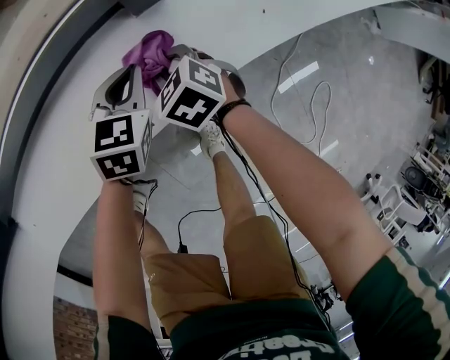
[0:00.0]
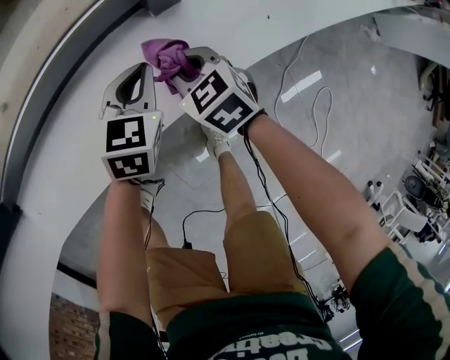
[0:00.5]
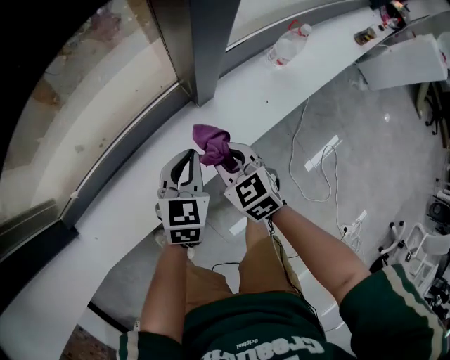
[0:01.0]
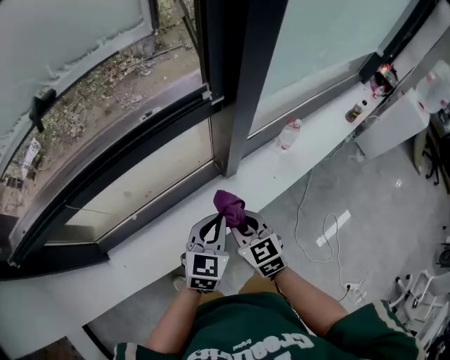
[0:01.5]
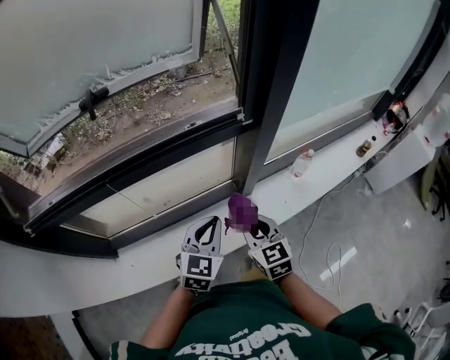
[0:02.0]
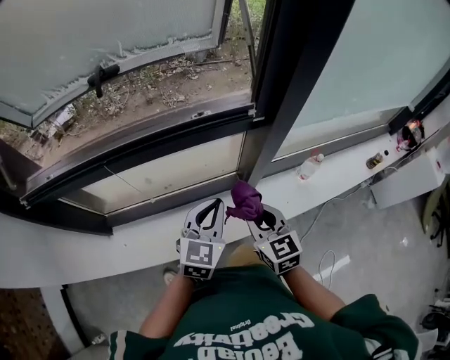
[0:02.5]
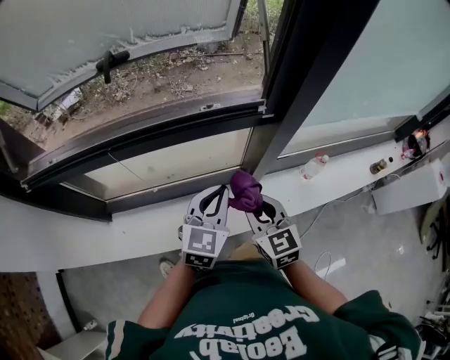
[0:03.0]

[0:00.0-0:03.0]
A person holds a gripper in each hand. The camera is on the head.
0:00.0 to 0:01.5: The two grippers go approximately 40 cm upward. The right gripper swivels roughly 40 degrees; the left gripper turns by some 20 degrees.
0:01.5 to 0:03.0: The left gripper travels upward and forward by roughly 10 cm; the right gripper is displaced upward by approximately 10 cm.

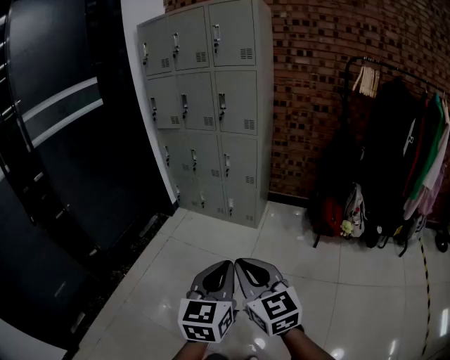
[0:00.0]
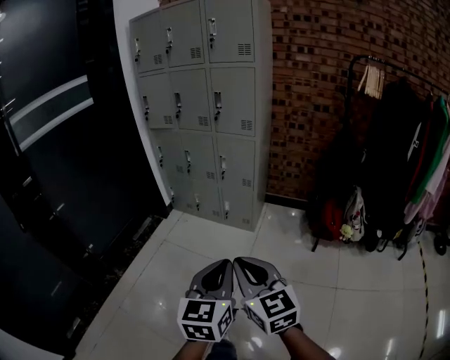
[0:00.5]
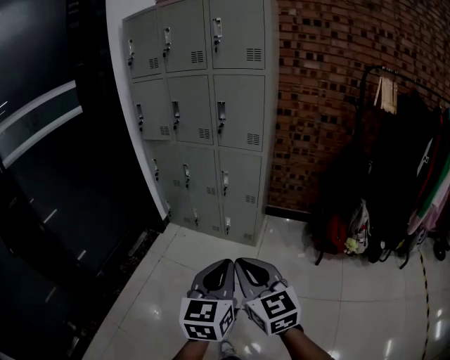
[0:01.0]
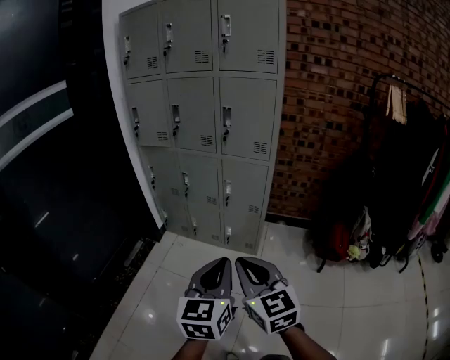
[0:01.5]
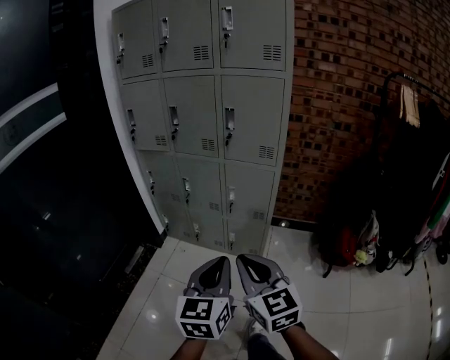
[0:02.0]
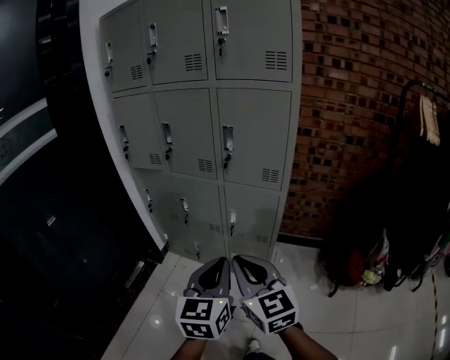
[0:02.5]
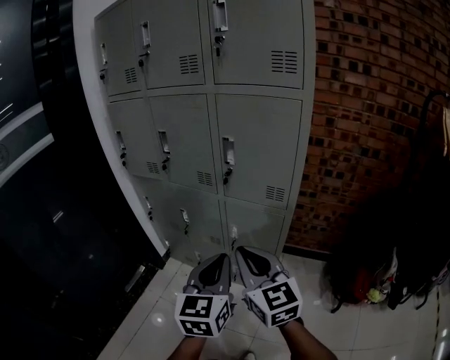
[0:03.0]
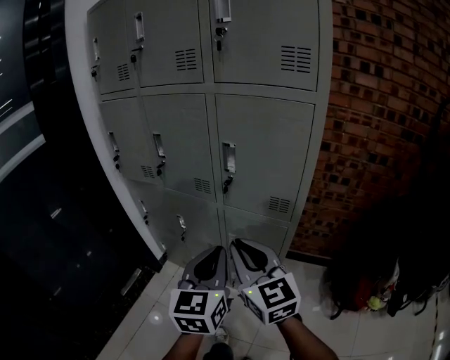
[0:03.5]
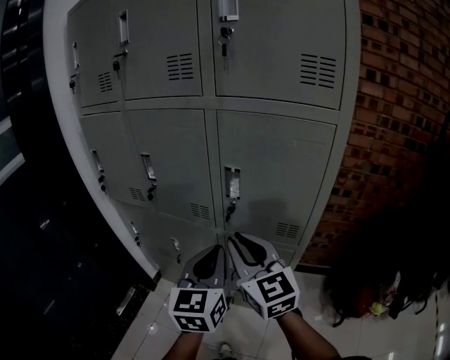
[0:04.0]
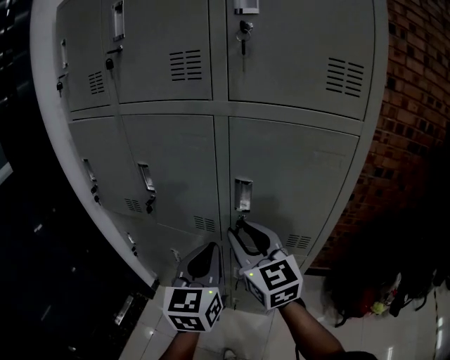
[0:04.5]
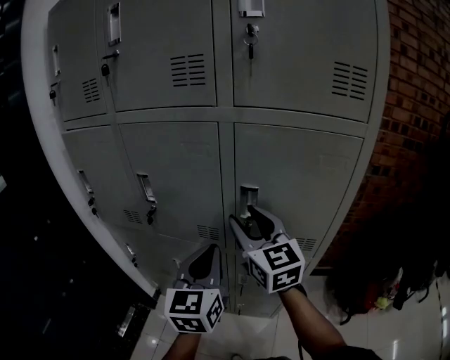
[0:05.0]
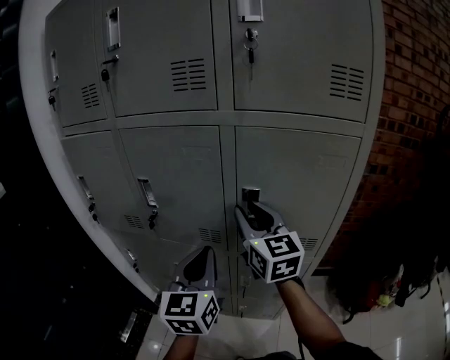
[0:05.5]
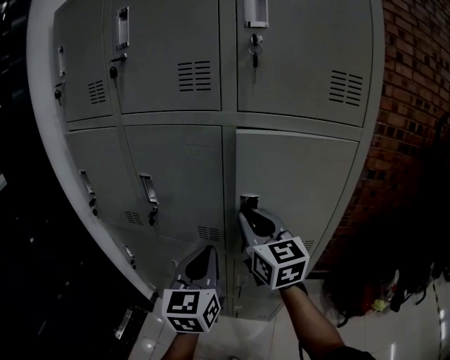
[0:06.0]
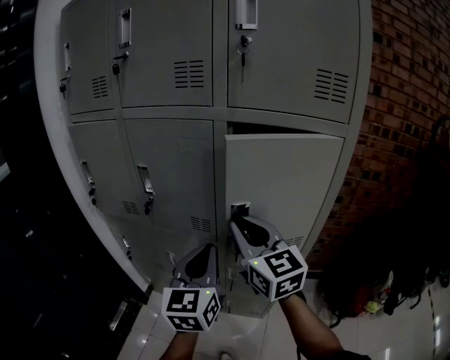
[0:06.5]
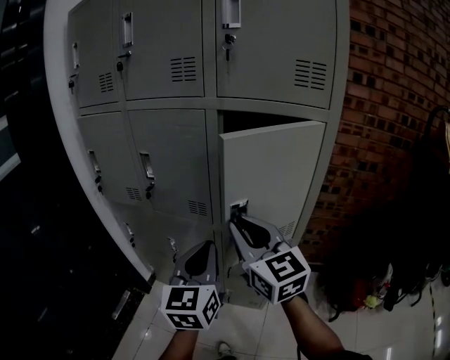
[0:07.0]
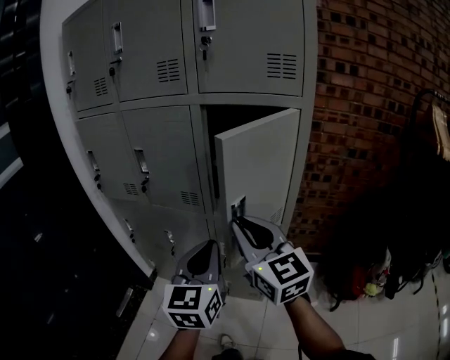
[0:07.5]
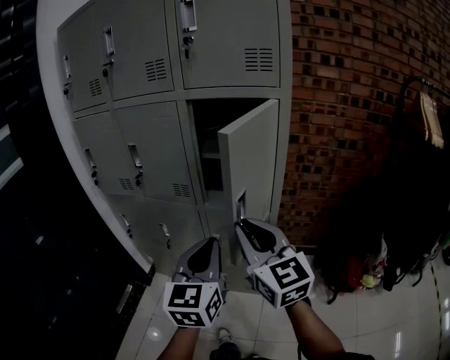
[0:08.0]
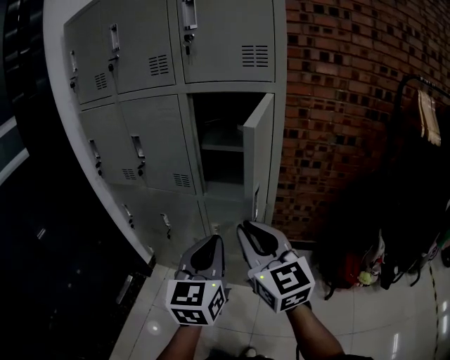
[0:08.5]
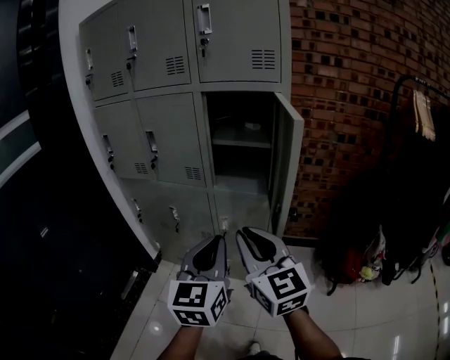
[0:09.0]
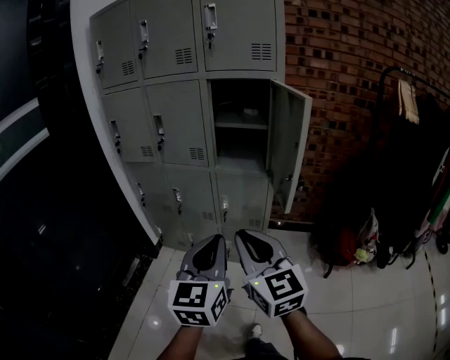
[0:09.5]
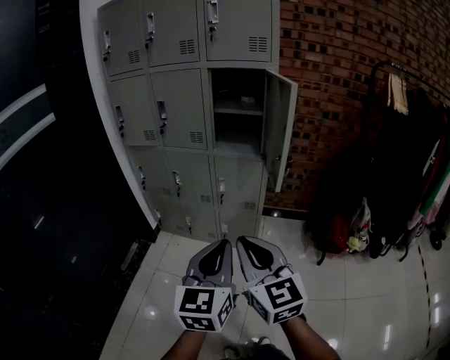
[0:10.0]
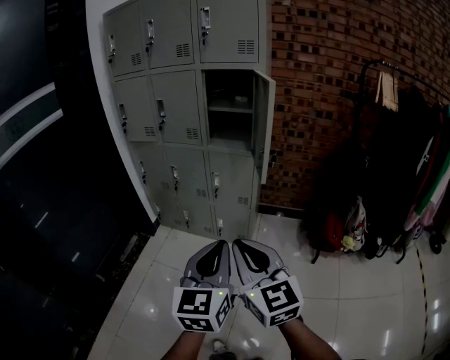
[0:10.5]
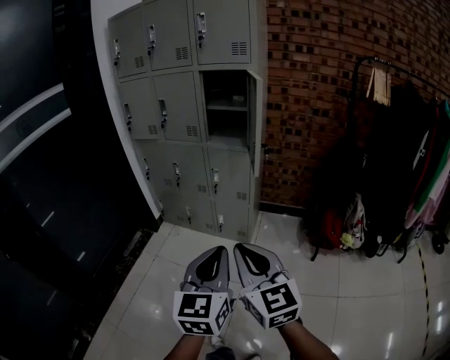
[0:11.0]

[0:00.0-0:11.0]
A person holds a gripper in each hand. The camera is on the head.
0:00.0 to 0:02.0: Both grippers are carried forward, some 40 cm.
0:02.0 to 0:03.5: The grippers both shift forward by about 30 cm.
0:03.5 to 0:05.5: The right gripper goes some 25 cm forward, and opens its fingers; the left gripper goes some 20 cm forward and to the left.
0:05.5 to 0:07.5: The left gripper moves backward and to the right, about 20 cm; the right gripper goes about 20 cm backward.
0:07.5 to 0:09.0: Both grippers move backward, about 15 cm.
0:09.0 to 0:11.0: Both grippers move backward, approximately 35 cm.

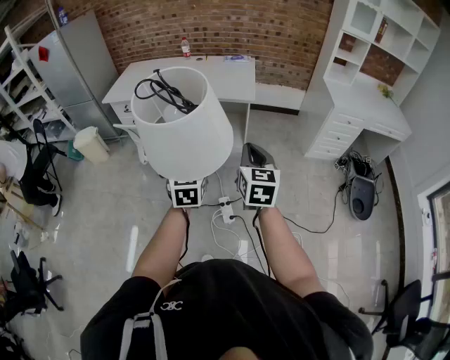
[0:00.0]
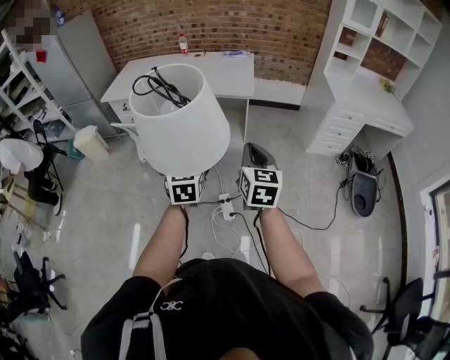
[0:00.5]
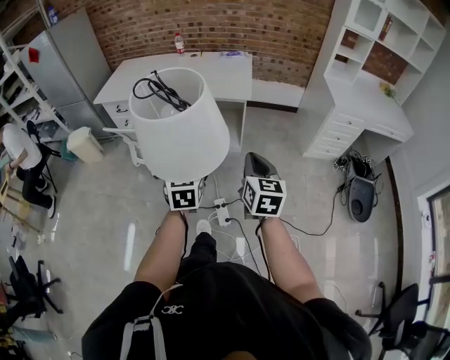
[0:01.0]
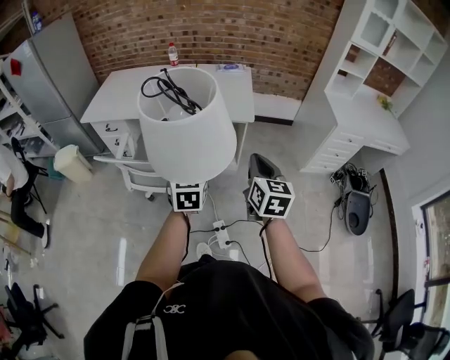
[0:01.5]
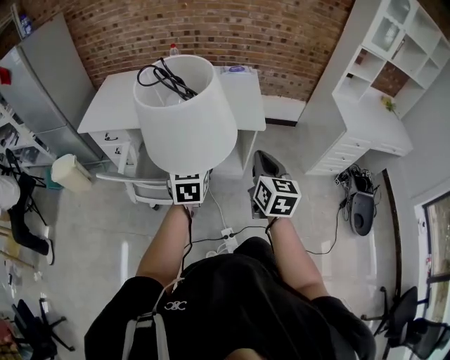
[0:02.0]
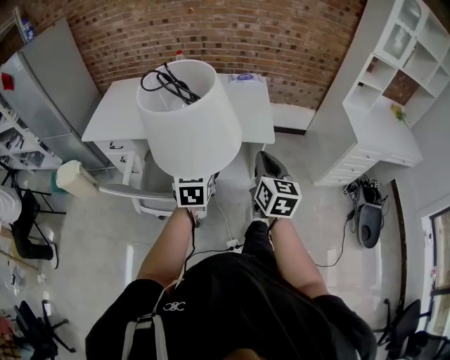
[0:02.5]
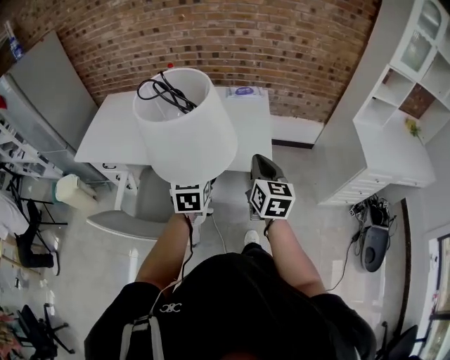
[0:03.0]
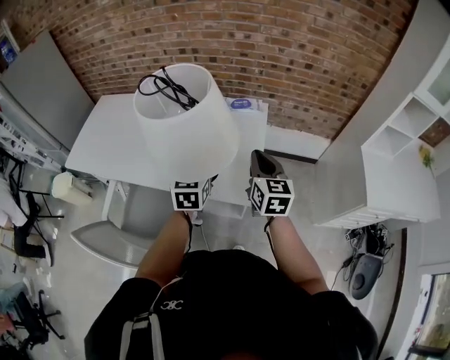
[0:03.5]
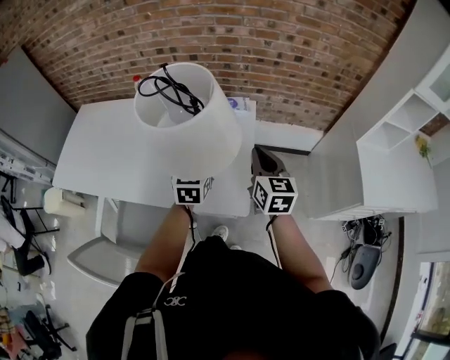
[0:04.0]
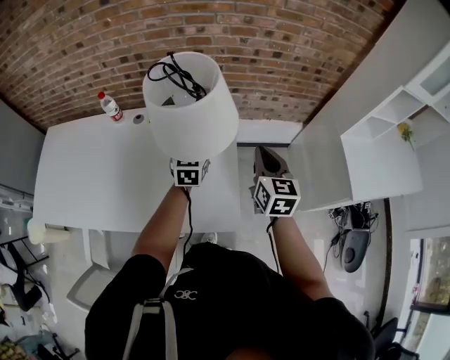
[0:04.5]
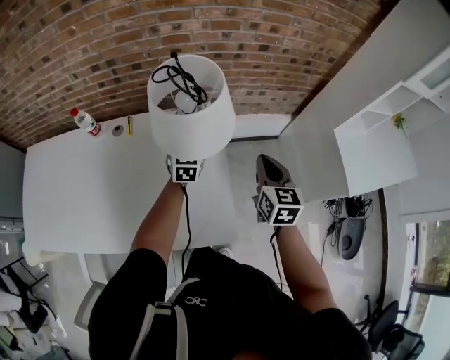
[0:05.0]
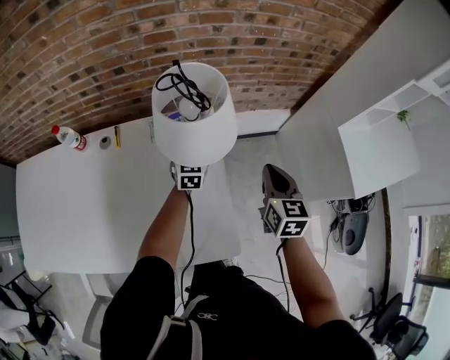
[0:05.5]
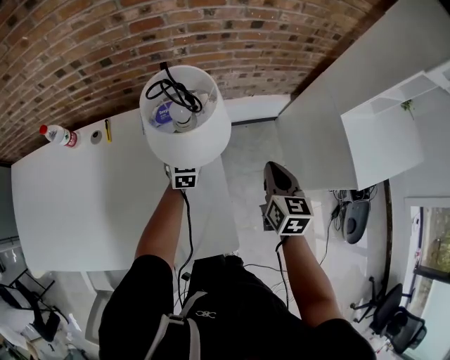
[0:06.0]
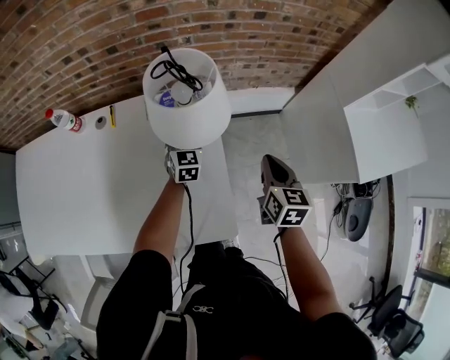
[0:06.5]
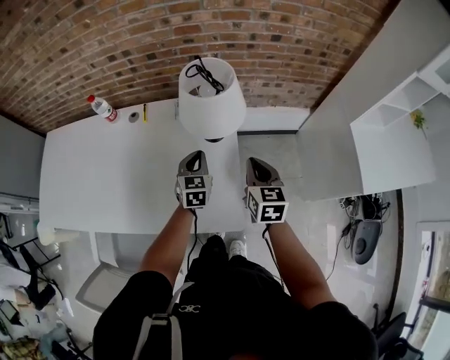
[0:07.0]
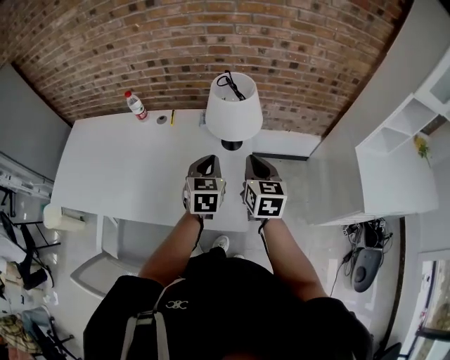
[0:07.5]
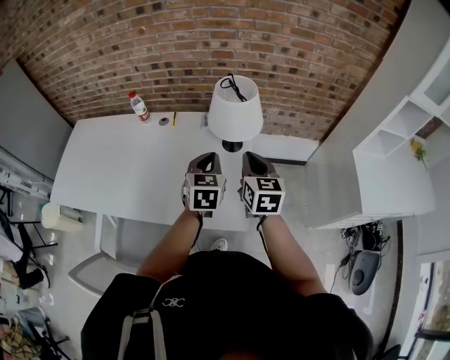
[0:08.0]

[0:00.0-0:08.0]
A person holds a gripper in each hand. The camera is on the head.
0:00.0 to 0:02.0: Both grippers travel together forward, some 30 cm.
0:02.0 to 0:04.0: Both grippers are carried forward, some 50 cm.
0:04.0 to 0:06.0: The left gripper heads forward and downward, covering about 35 cm. Meanwhile the right gripper goes some 20 cm forward, to the right and downward, and changes its angle by some 30 degrees.
0:06.0 to 0:08.0: The right gripper heads to the left, upward and backward, covering approximately 20 cm, and changes its angle by roughly 20 degrees. Meanwhile the left gripper heads backward and upward, covering approximately 30 cm, and closes its fingers.

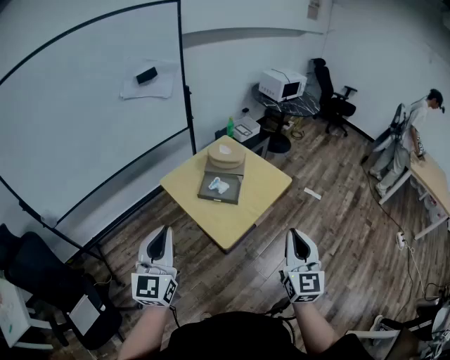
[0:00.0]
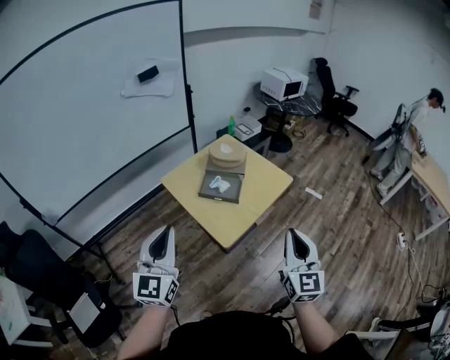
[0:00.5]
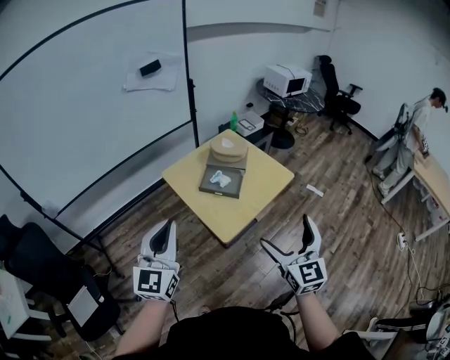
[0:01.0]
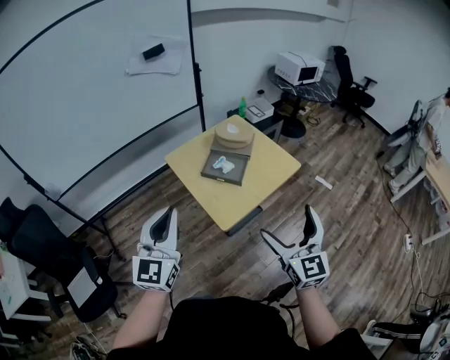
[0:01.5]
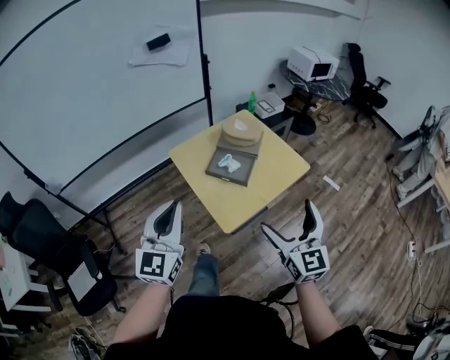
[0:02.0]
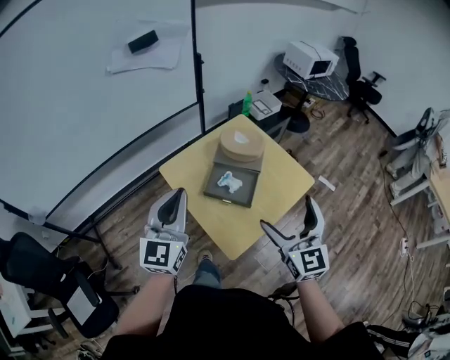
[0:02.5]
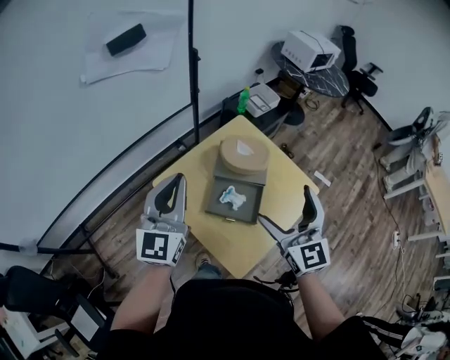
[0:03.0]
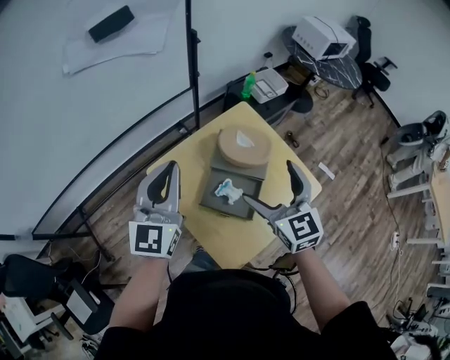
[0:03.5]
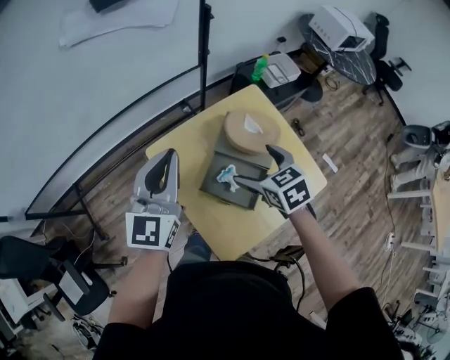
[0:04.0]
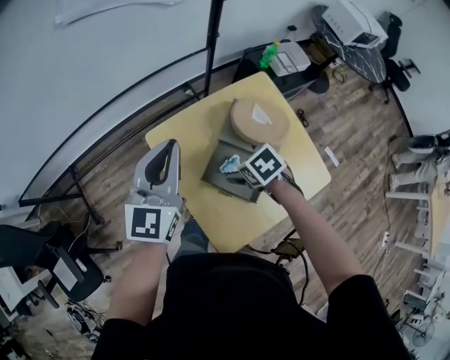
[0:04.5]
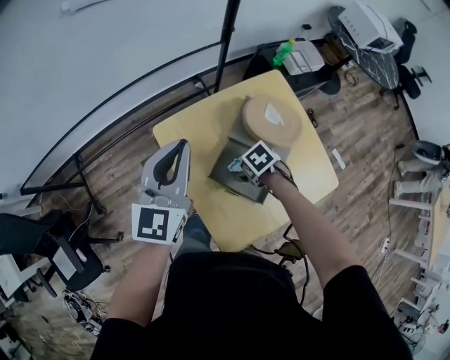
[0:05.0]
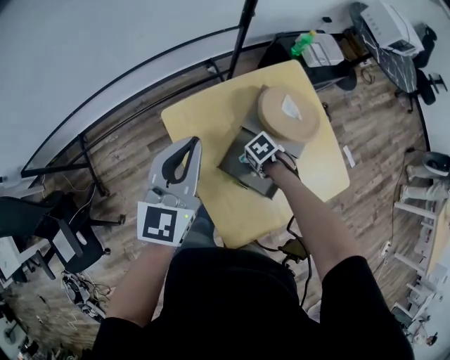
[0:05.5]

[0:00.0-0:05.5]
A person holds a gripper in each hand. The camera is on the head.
0:00.0 to 0:02.0: The right gripper travels forward by approximately 10 cm, rotates approximately 20 degrees, and opens its fingers. The left gripper moves to the right and forward, roughly 10 cm.
0:02.0 to 0:03.5: The pair of grippers is taken forward, some 40 cm.
0:03.5 to 0:05.5: The right gripper moves downward, roughly 40 cm, angles its fingers downward, by roughly 60 degrees, and closes up, while the left gripper moves downward, some 10 cm.
